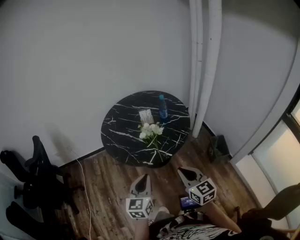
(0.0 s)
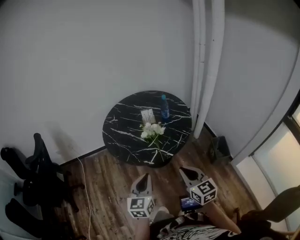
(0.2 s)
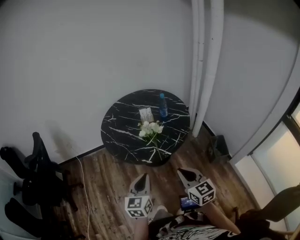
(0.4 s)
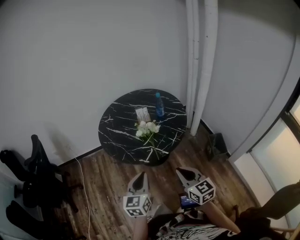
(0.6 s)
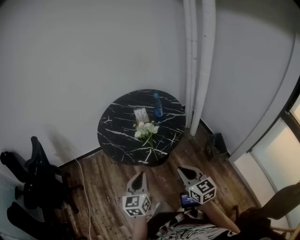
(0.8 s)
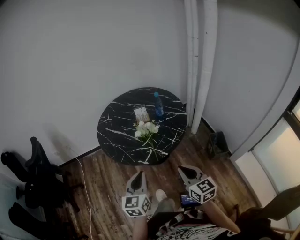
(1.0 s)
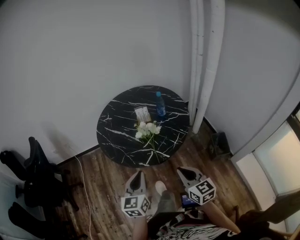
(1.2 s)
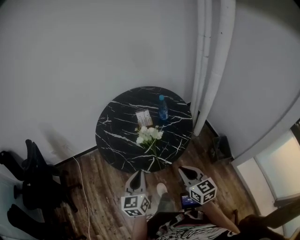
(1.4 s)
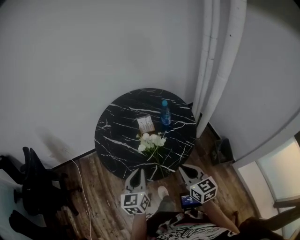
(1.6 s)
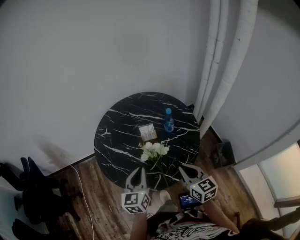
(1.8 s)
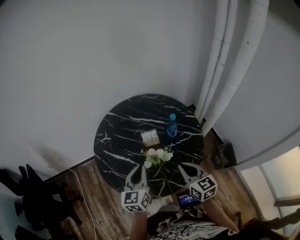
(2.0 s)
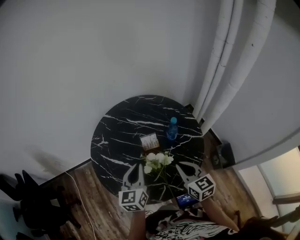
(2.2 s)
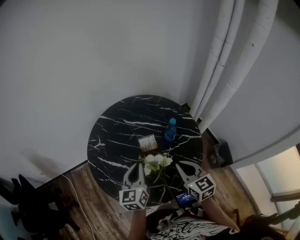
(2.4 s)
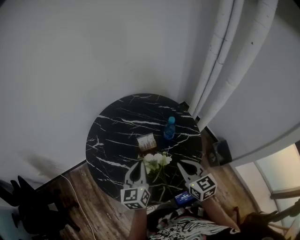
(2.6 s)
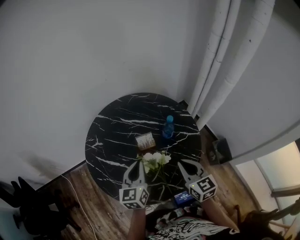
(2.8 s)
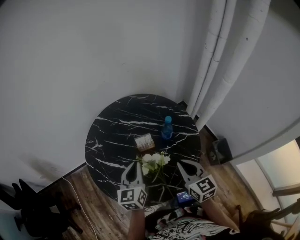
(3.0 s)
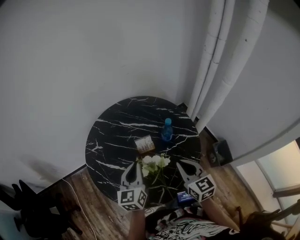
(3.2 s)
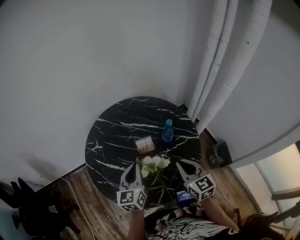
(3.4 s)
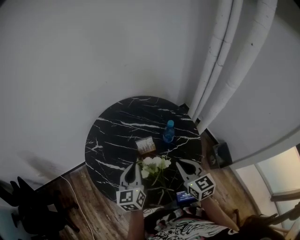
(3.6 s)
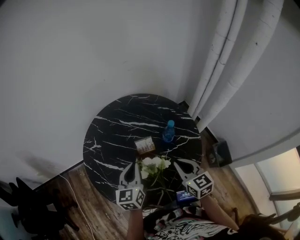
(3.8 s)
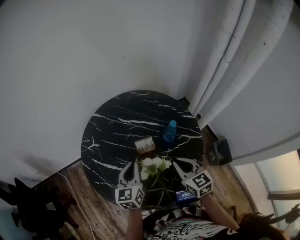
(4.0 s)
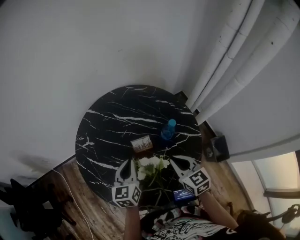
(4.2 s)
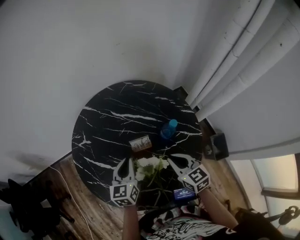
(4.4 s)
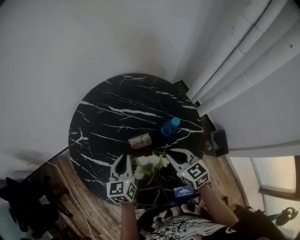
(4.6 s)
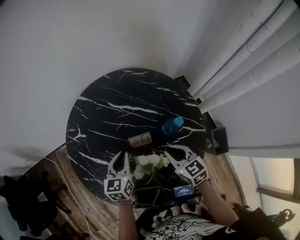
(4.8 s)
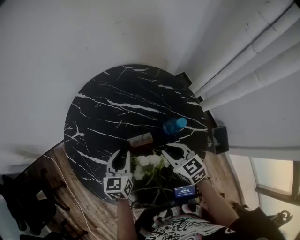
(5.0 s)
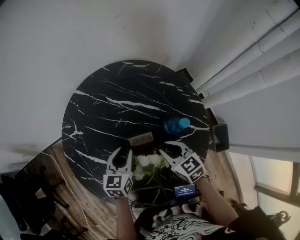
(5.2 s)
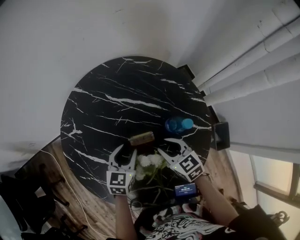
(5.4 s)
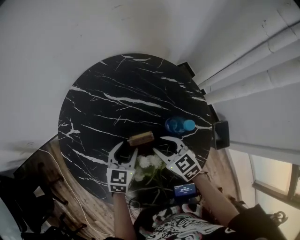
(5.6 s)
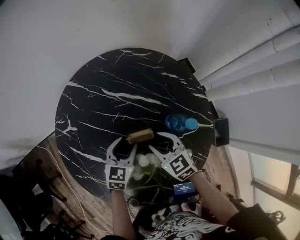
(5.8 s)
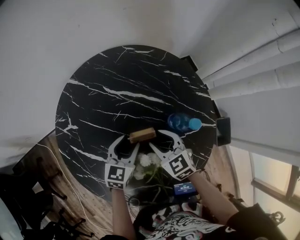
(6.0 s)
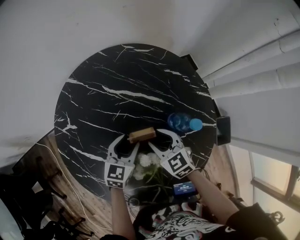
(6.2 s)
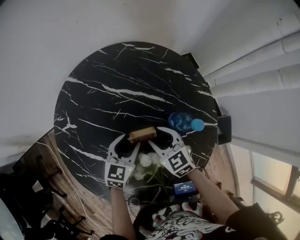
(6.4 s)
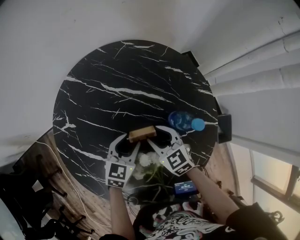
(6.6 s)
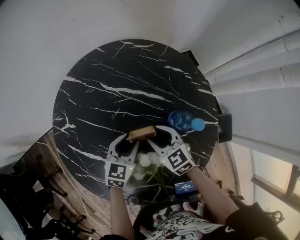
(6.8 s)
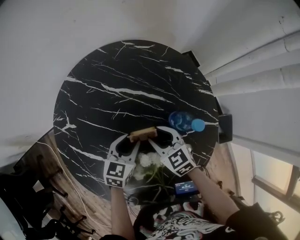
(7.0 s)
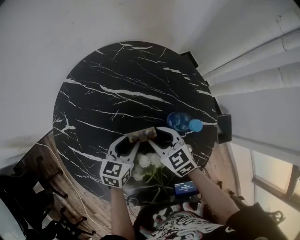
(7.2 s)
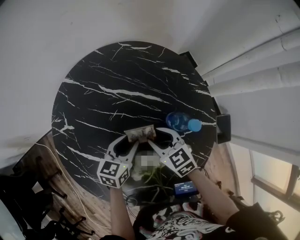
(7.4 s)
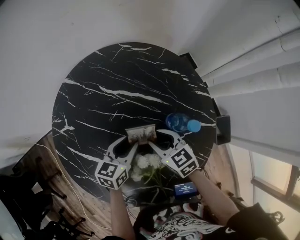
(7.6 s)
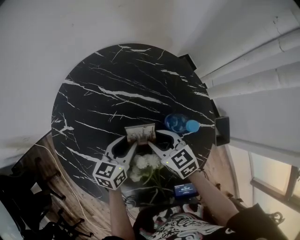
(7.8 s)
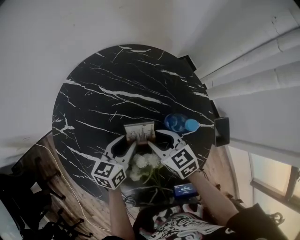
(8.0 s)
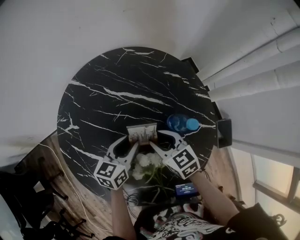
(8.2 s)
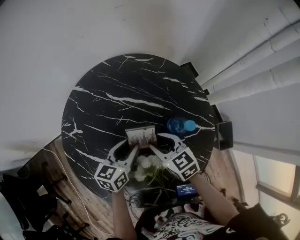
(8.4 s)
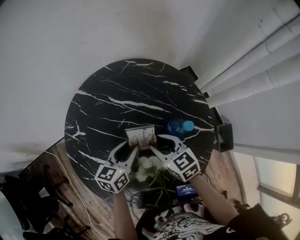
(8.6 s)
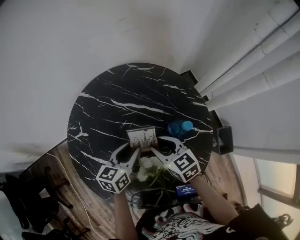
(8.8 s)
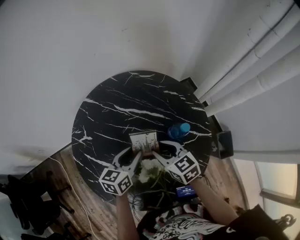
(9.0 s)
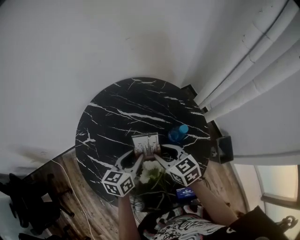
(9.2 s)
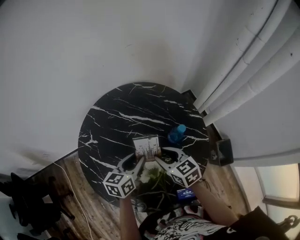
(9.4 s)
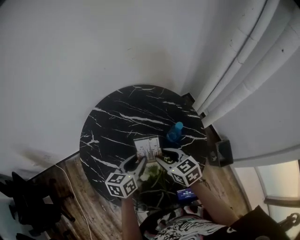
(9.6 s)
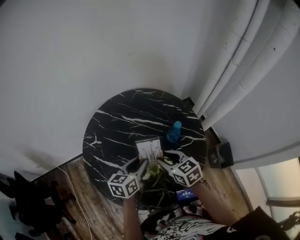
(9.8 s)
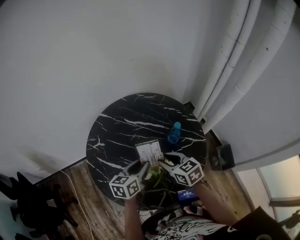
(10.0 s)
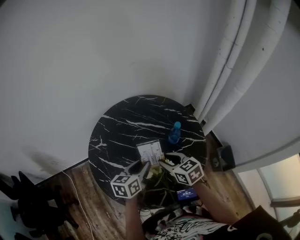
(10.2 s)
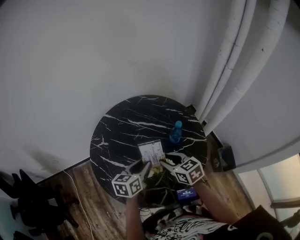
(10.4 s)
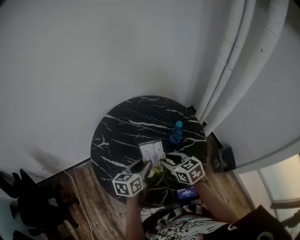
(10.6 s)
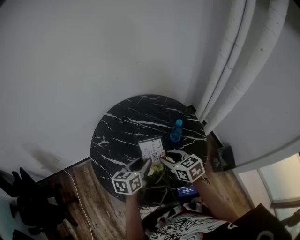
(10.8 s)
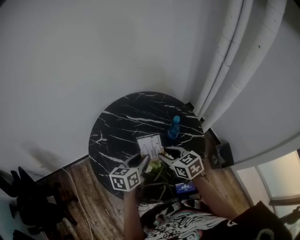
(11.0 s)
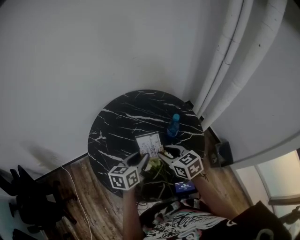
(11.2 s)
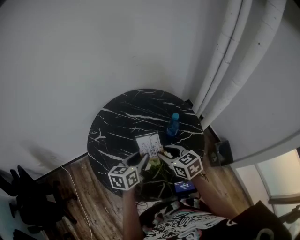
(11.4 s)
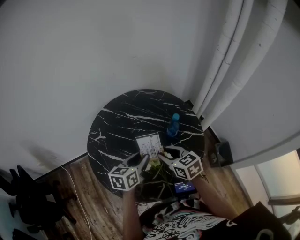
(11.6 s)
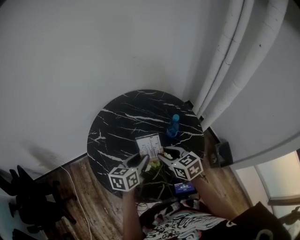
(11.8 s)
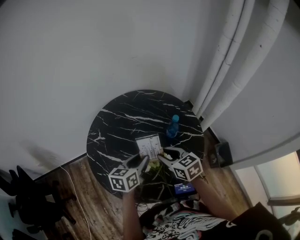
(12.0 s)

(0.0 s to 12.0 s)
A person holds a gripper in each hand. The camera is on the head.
0.0 s - 1.6 s: Both grippers travel together forward, some 15 cm.
1.6 s - 3.0 s: The grippers both shift forward by some 20 cm.
3.0 s - 4.4 s: The left gripper goes roughly 10 cm downward and forward. Meanwhile the right gripper is displaced forward and downward by approximately 10 cm.
4.4 s - 6.0 s: The left gripper is displaced downward and forward by roughly 10 cm, rotates roughly 20 degrees, and opens up; the right gripper travels downward, forward and to the left by roughly 15 cm, and opens up.
6.0 s - 7.6 s: There are only small adjustments of the grippers.
7.6 s - 9.0 s: Both grippers move upward, about 10 cm.
9.0 s - 10.4 s: Both grippers move backward and upward, some 10 cm.
10.4 s - 12.0 s: There are only small adjustments of the grippers.

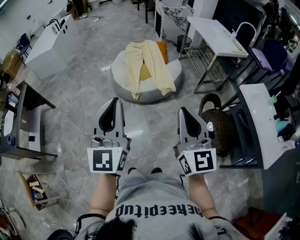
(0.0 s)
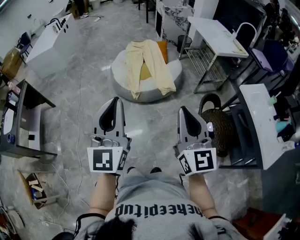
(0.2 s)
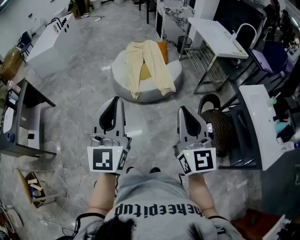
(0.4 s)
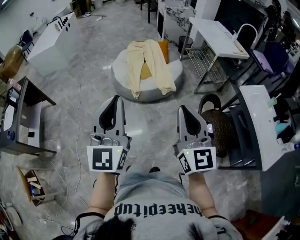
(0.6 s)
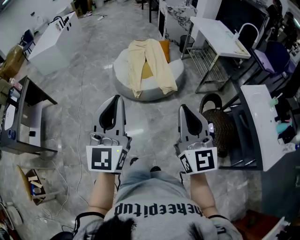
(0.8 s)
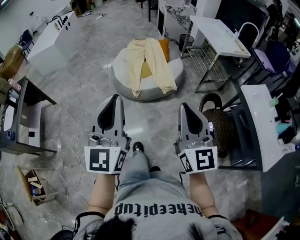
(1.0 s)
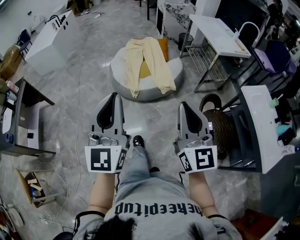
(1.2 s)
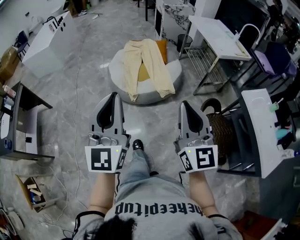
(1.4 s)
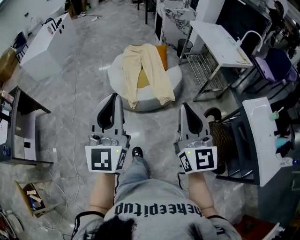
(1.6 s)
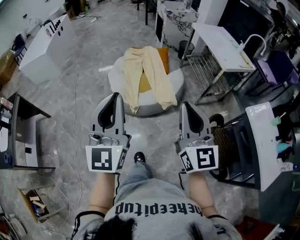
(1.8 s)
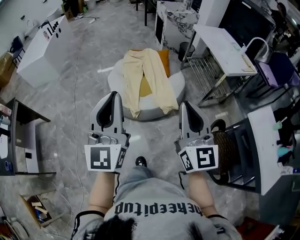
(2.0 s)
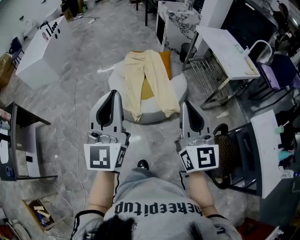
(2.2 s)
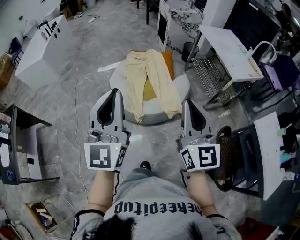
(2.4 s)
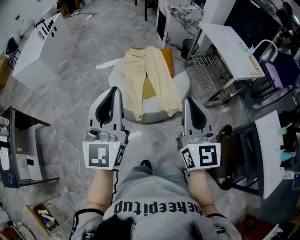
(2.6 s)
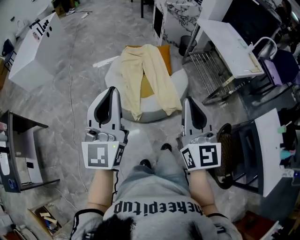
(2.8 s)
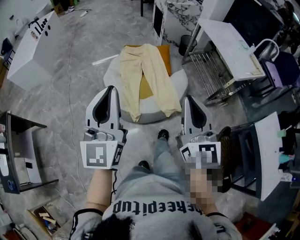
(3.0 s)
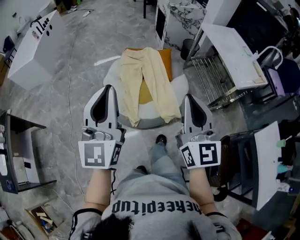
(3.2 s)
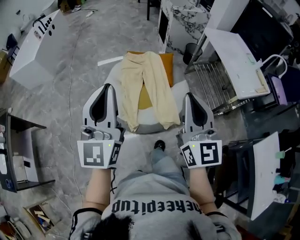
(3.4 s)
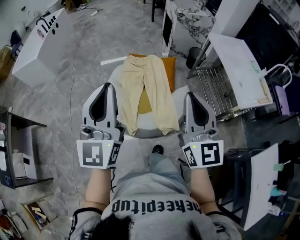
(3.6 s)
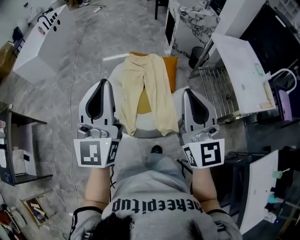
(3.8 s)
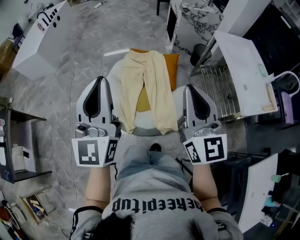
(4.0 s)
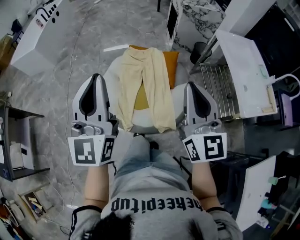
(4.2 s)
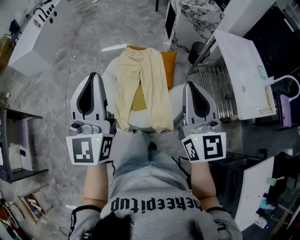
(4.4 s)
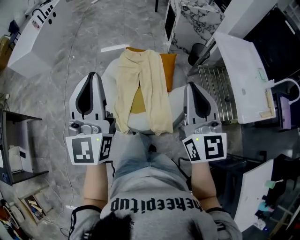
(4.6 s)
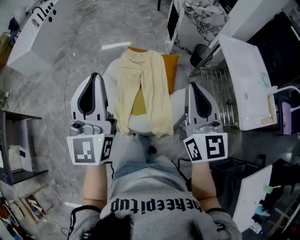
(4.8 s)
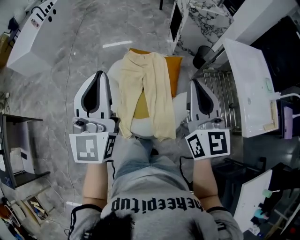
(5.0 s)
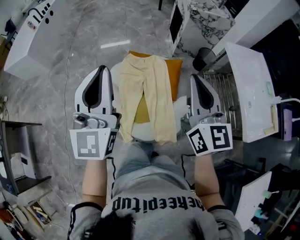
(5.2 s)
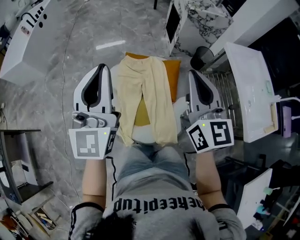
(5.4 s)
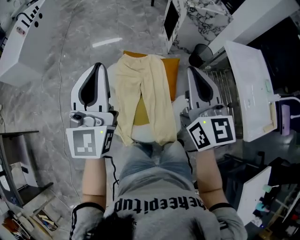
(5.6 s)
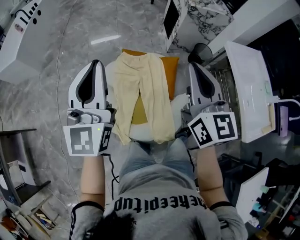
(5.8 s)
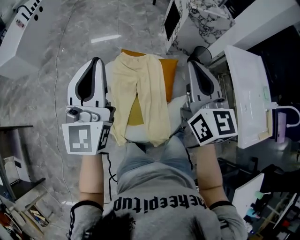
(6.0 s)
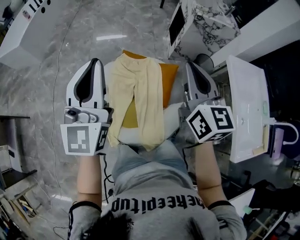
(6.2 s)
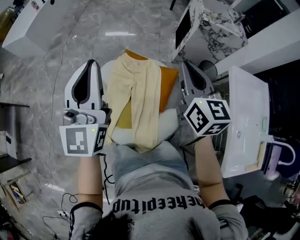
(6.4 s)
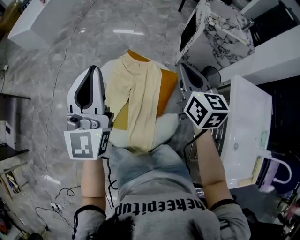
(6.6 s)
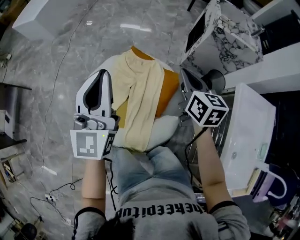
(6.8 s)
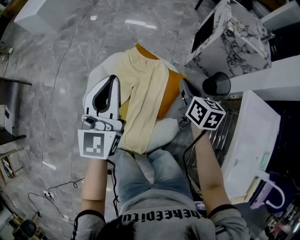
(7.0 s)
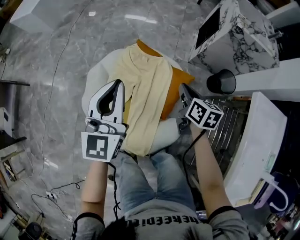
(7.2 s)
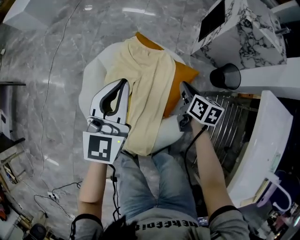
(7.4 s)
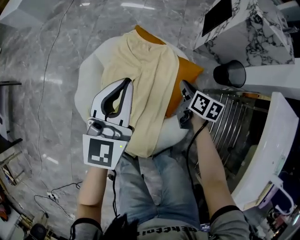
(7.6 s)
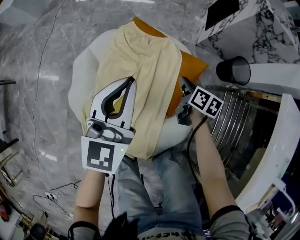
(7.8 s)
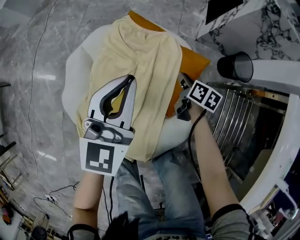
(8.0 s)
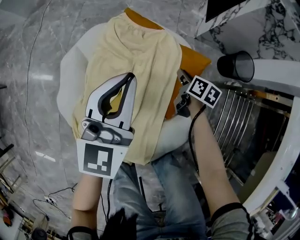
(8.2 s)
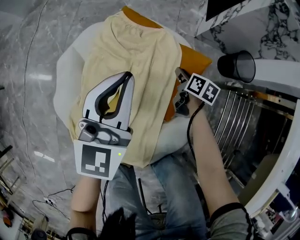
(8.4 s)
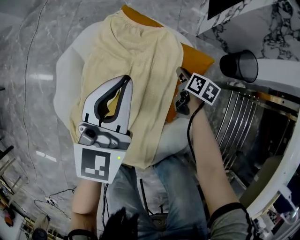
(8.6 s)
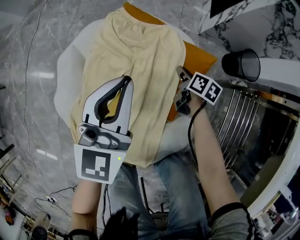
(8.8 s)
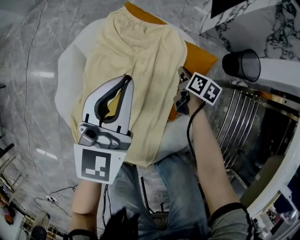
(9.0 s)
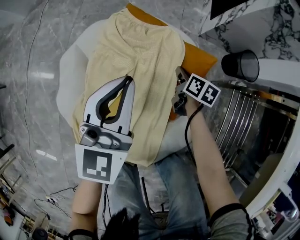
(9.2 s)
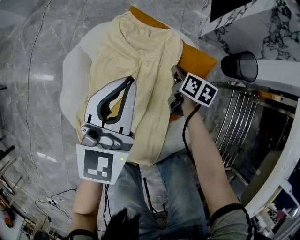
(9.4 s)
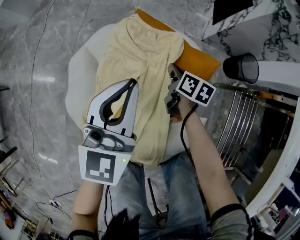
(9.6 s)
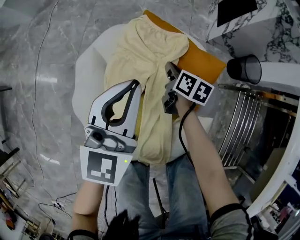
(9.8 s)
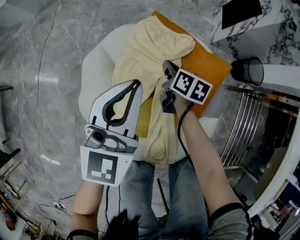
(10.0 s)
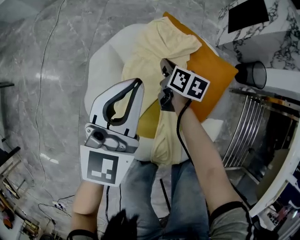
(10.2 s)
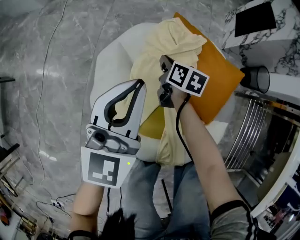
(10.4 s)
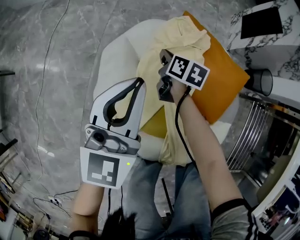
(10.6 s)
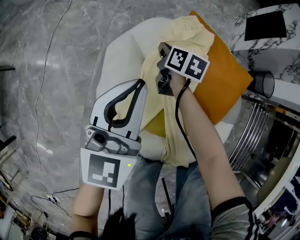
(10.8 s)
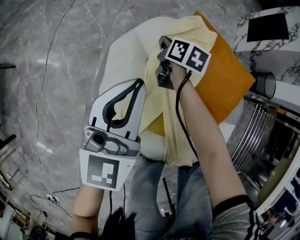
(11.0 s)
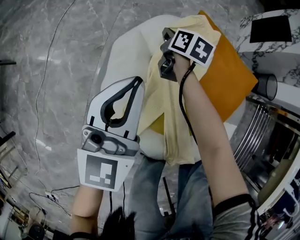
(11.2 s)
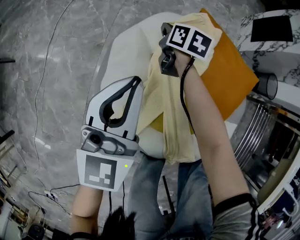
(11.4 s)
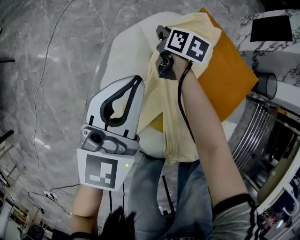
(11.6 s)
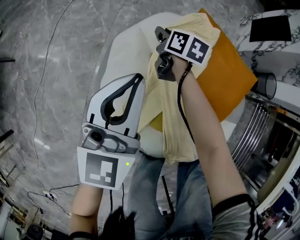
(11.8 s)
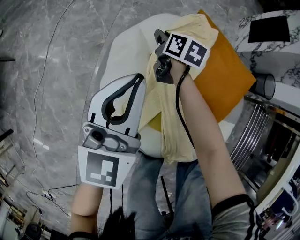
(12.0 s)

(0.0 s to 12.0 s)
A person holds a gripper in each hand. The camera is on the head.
0.0 s - 1.6 s: The grippers both shift forward by approximately 15 cm.
1.6 s - 3.0 s: Both grippers move forward, some 30 cm.
3.0 s - 4.4 s: The two grippers go some 30 cm forward and to the right.
4.4 s - 6.0 s: Both grippers travel together forward, approximately 30 cm.
6.0 s - 7.6 s: The left gripper goes approximately 35 cm downward and to the right, and rotates approximately 20 degrees. Meanwhile the right gripper moves downward, roughly 50 cm, and tilts its fingers about 40 degrees downward.
7.6 s - 9.0 s: Both grippers move downward, approximately 20 cm.
9.0 s - 10.4 s: The grippers both shift to the left by some 30 cm.
10.4 s - 12.0 s: Both grippers move to the left, approximately 10 cm.
